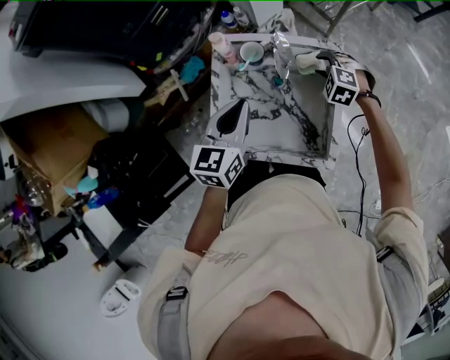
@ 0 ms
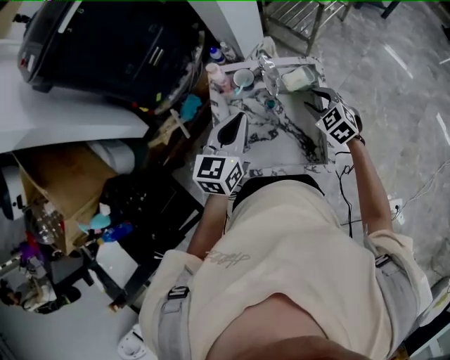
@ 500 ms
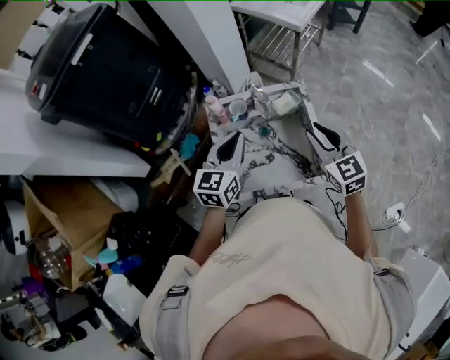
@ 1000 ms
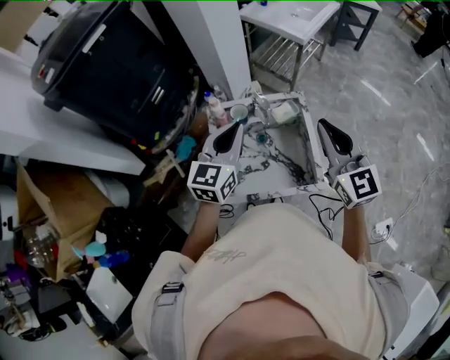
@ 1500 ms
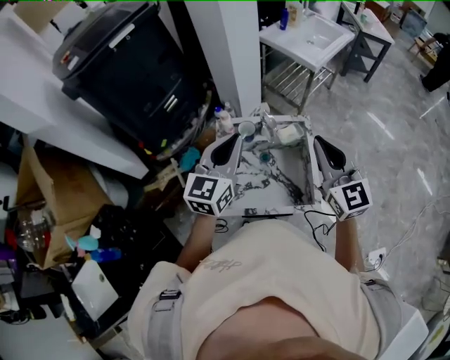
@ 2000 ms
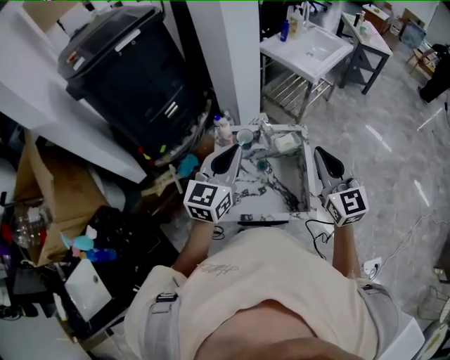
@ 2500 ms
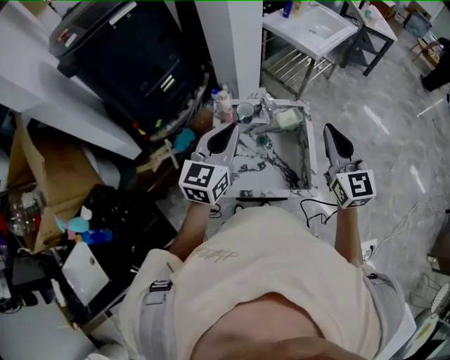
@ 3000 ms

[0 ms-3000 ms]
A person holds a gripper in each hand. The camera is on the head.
0 ms to 1500 ms: The right gripper travels upward and backward by some 40 cm, angles its fingers upward, by some 60 degrees, and closes its fingers, while the left gripper moves upward, some 10 cm, and changes its angle by roughly 20 degrees.
1500 ms to 3000 ms: The left gripper changes place by roughly 5 cm.

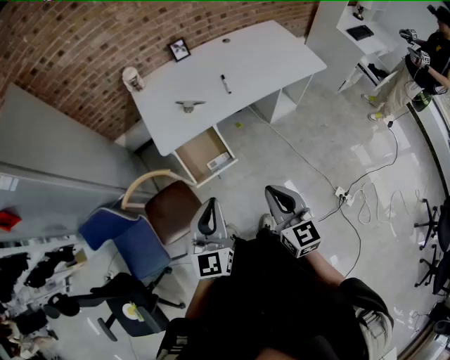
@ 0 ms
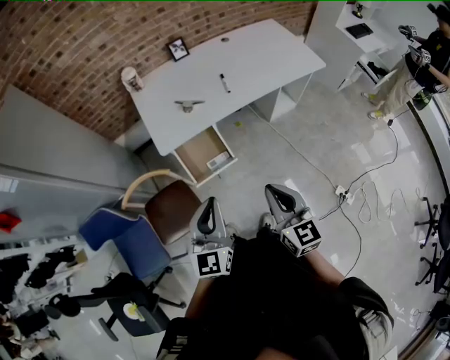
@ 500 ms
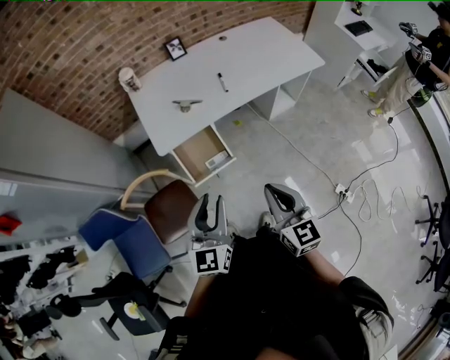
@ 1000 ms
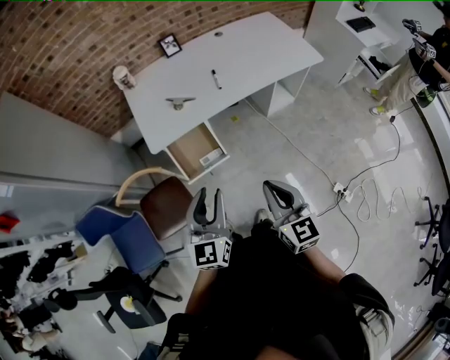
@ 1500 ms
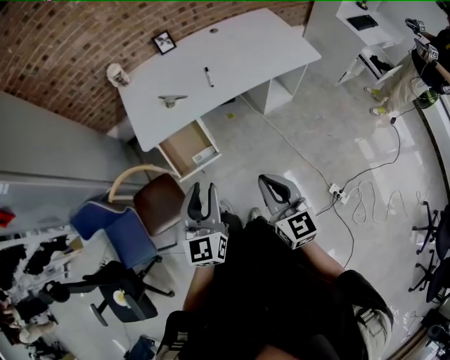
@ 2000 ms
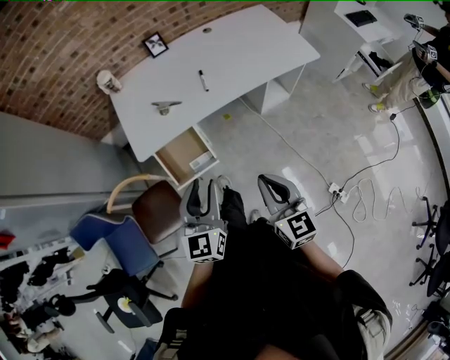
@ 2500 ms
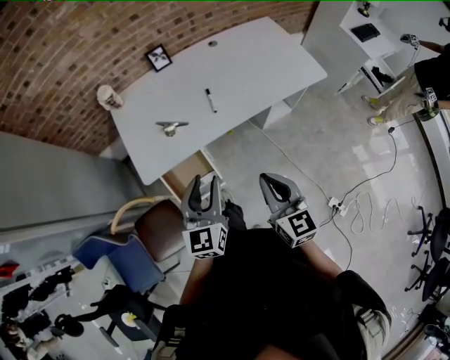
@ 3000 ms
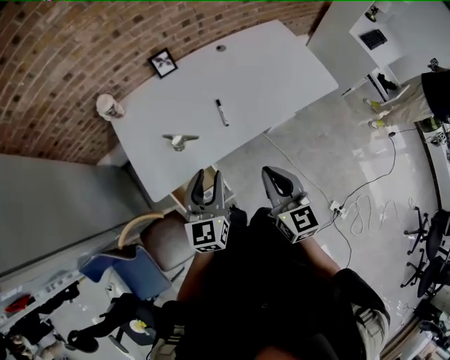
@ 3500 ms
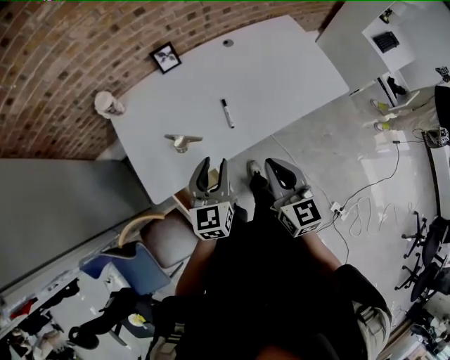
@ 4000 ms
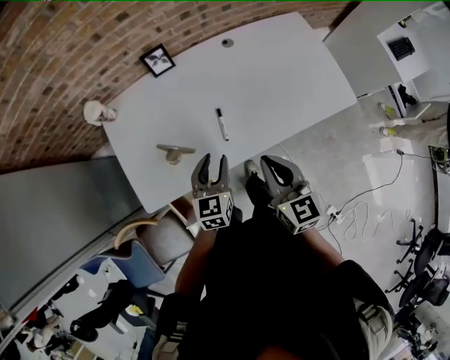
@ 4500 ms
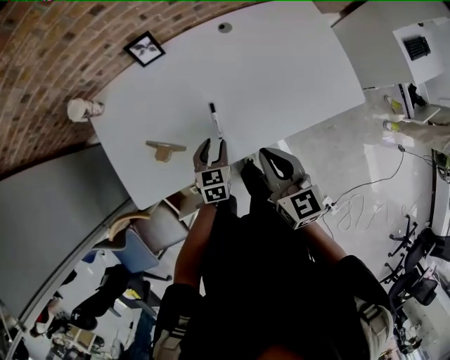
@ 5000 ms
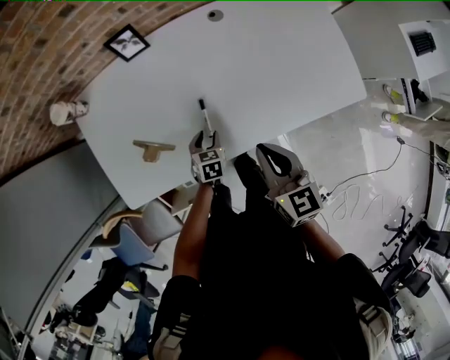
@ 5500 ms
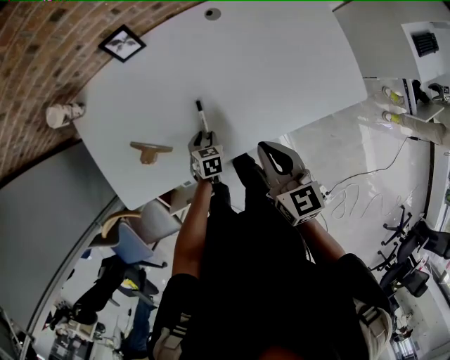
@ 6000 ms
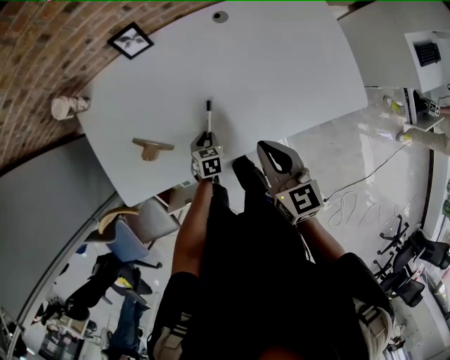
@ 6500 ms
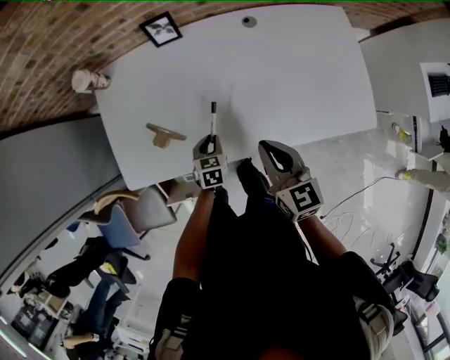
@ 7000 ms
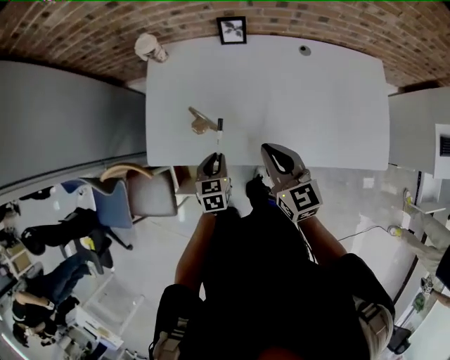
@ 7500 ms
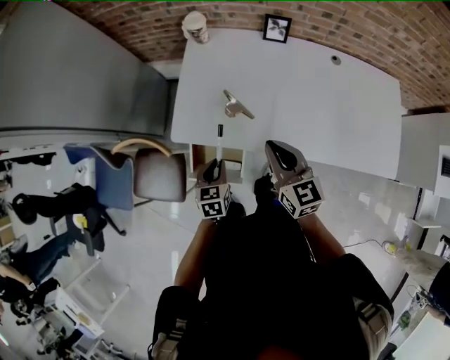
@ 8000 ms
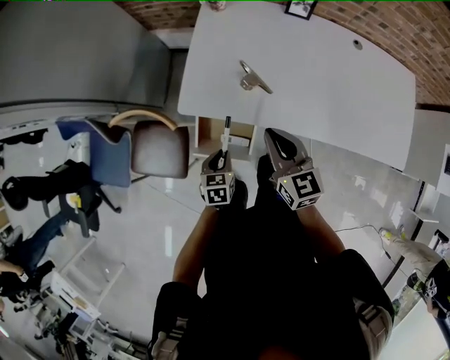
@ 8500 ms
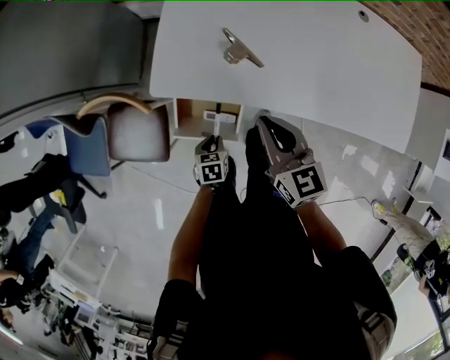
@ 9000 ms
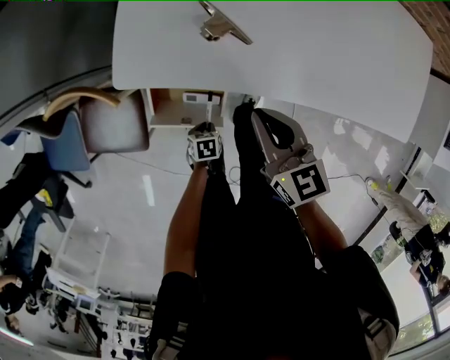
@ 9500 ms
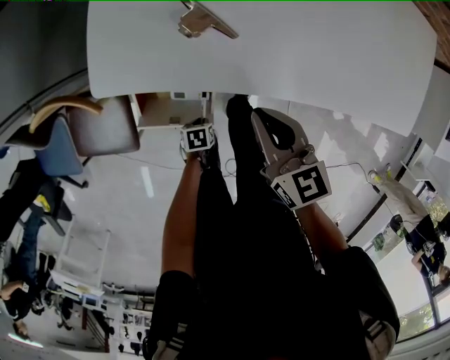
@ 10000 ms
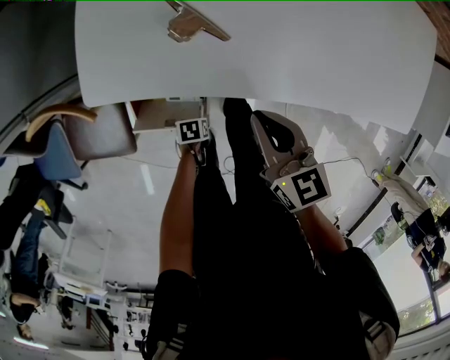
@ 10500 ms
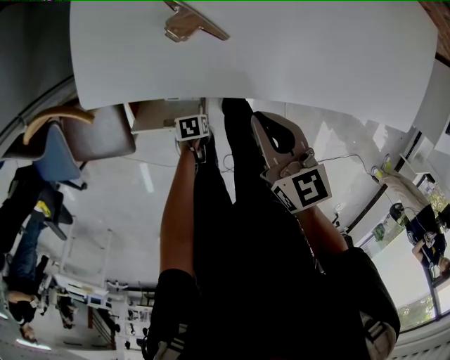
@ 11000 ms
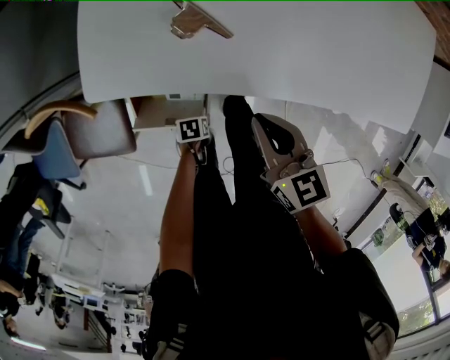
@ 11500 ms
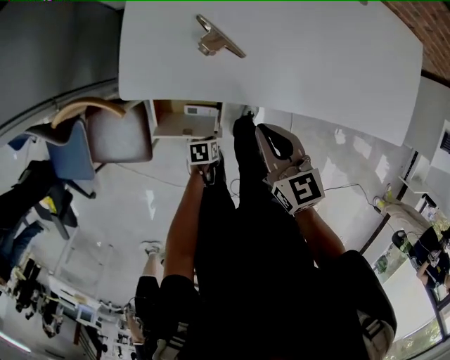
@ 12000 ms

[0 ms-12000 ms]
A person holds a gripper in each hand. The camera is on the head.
0 ms to 2000 ms: The grippers both shift to the right by about 10 cm. The left gripper opens up.
2000 ms to 4000 ms: The two grippers go roughly 35 cm forward.
4000 ms to 6000 ms: The right gripper shifts approximately 25 cm forward, to the right and downward, while the left gripper moves downward and forward, about 35 cm, and angles its fingers downward, by roughly 50 degrees.
6000 ms to 8000 ms: The left gripper shifts by roughly 35 cm, and changes its angle by approximately 40 degrees, while the right gripper moves roughly 25 cm, and swivels about 30 degrees.
8000 ms to 10000 ms: The right gripper travels downward by about 20 cm. Meanwhile the left gripper travels downward by about 35 cm, and angles its fingers downward, by approximately 40 degrees.
10000 ms to 12000 ms: The left gripper shifts roughly 5 cm upward.

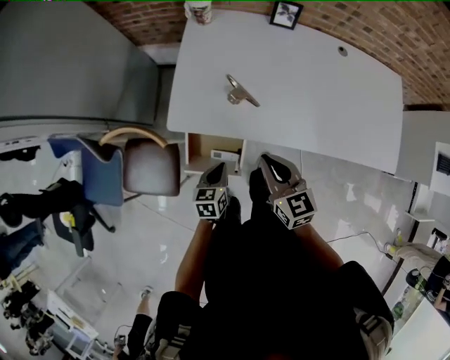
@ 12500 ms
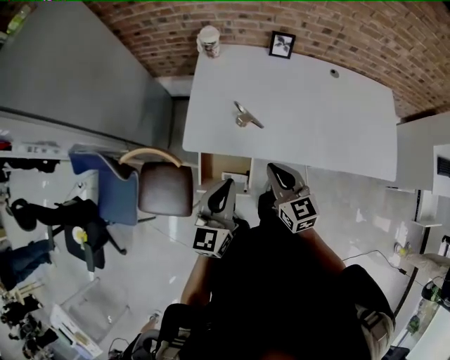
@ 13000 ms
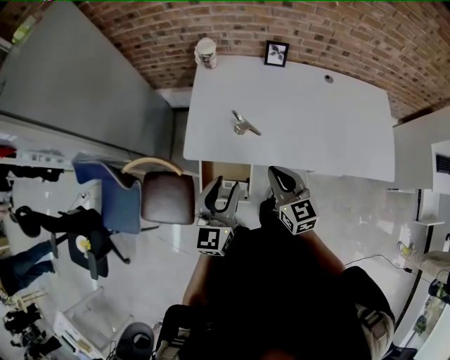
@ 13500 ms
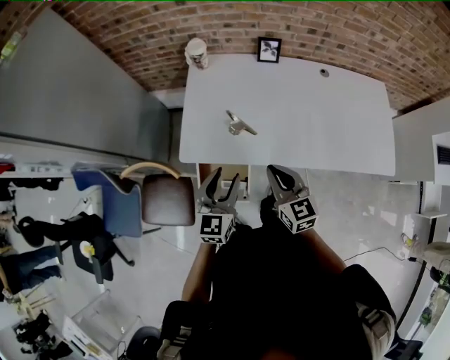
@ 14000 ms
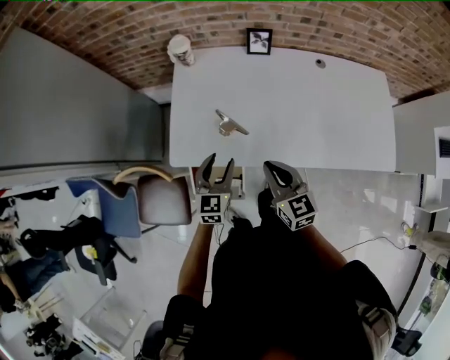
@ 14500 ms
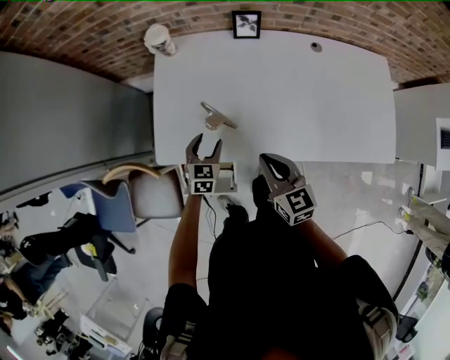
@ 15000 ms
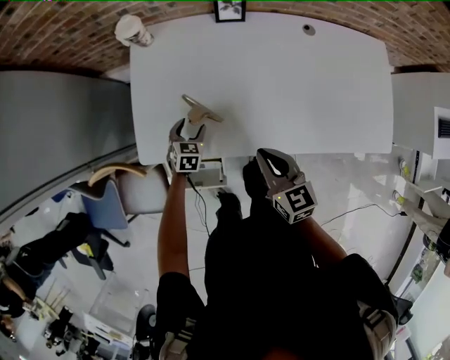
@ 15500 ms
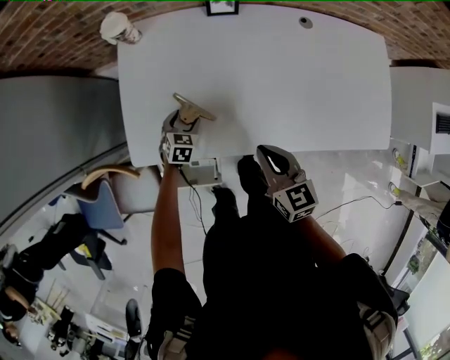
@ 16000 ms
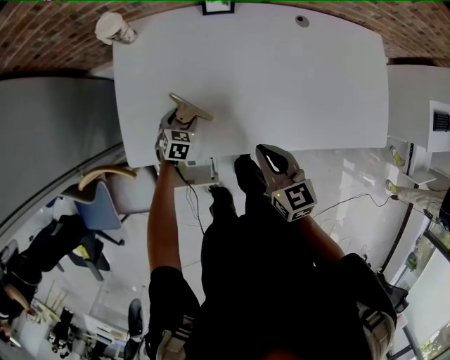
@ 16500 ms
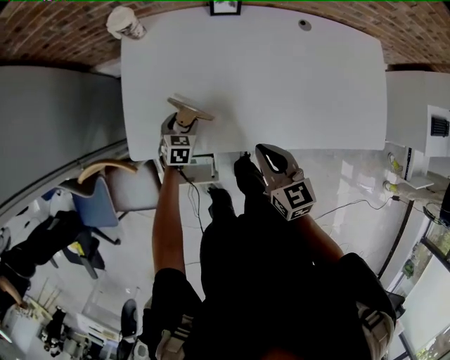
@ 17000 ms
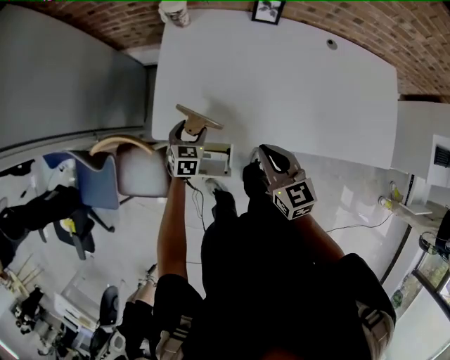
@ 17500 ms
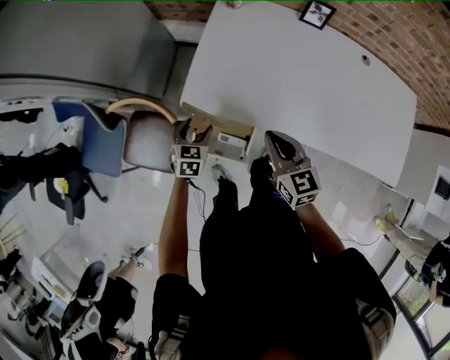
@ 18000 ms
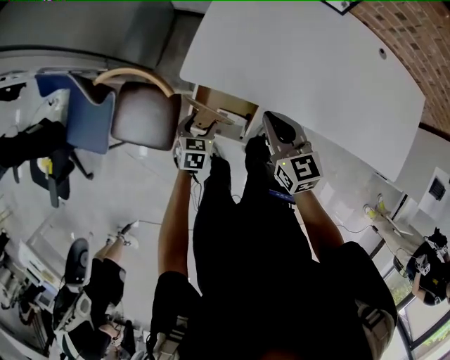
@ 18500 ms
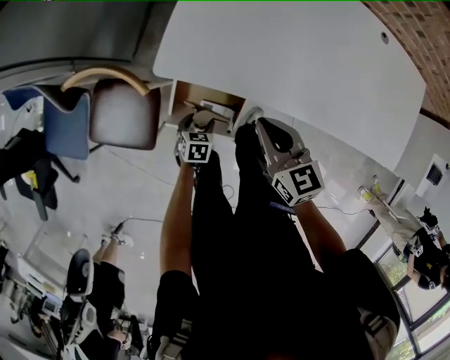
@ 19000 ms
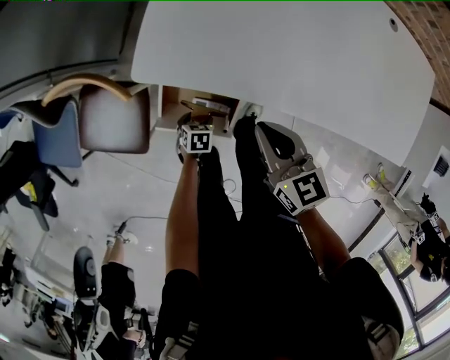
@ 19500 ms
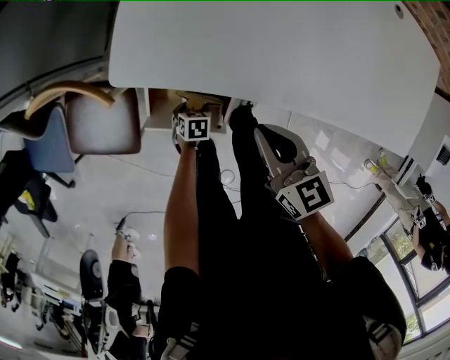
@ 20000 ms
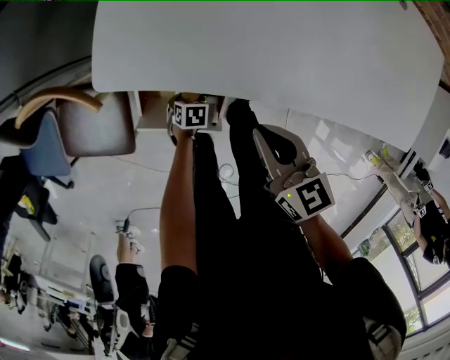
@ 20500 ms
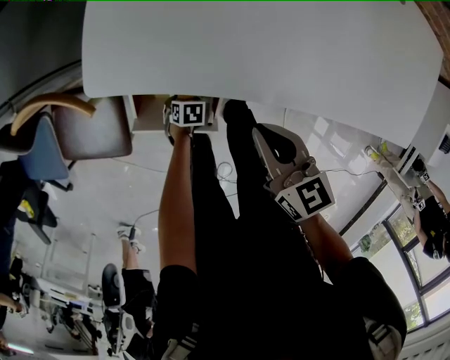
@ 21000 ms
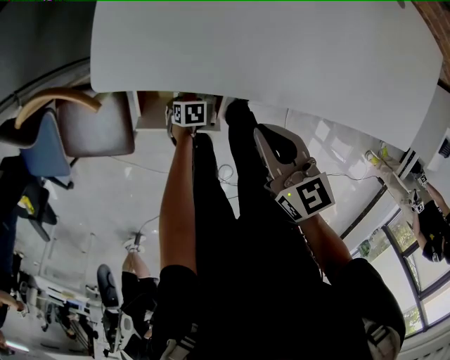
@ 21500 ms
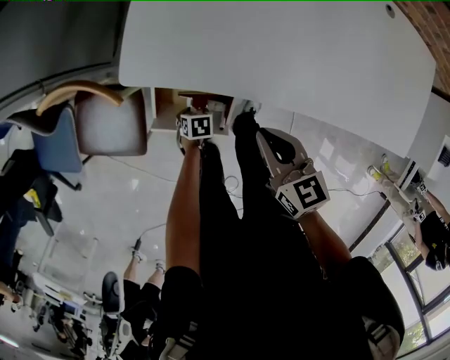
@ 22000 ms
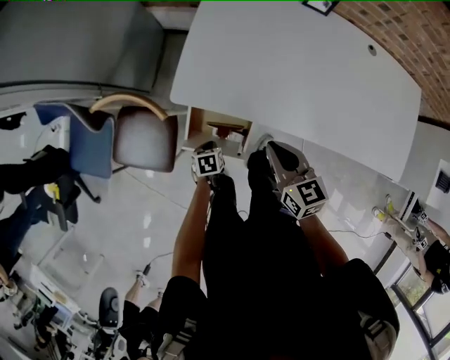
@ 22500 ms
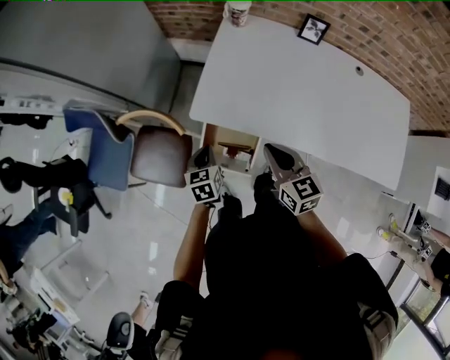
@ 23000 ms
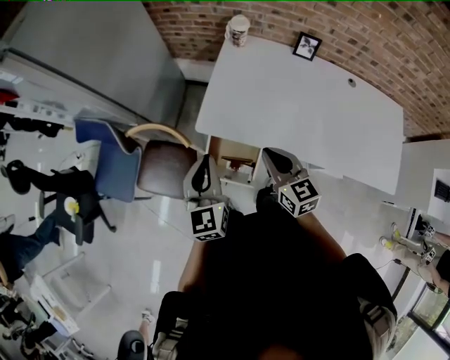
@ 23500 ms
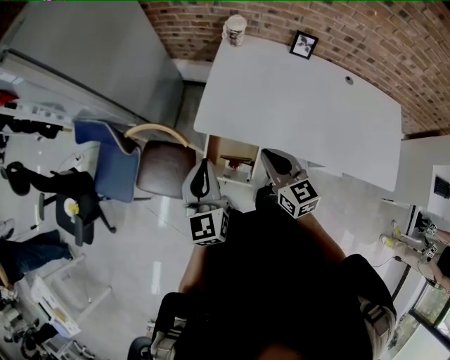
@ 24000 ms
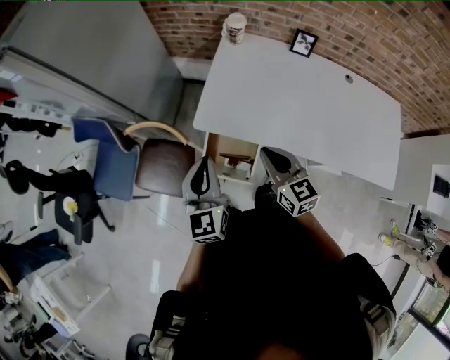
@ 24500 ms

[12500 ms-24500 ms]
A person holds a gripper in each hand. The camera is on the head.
12500 ms to 14500 ms: The left gripper moves upward and forward, about 20 cm, swivels roughly 30 degrees, and opens its fingers. The right gripper shifts by roughly 10 cm.
14500 ms to 16500 ms: The left gripper travels downward and forward by some 25 cm, and tips its fingers downward by approximately 30 degrees. The right gripper goes about 10 cm to the right and downward.
16500 ms to 18500 ms: The left gripper is displaced backward and to the left by roughly 30 cm, and rotates about 30 degrees. The right gripper moves to the left, some 20 cm, and swivels some 20 degrees.
18500 ms to 20500 ms: The left gripper heads downward, covering roughly 30 cm, and points its fingers approximately 30 degrees further downward; the right gripper moves downward, some 10 cm.
20500 ms to 22500 ms: The left gripper travels upward by some 15 cm, swivels roughly 20 degrees, and closes. Meanwhile the right gripper moves upward, approximately 10 cm.
22500 ms to 24500 ms: The left gripper is displaced upward by roughly 40 cm, and points its fingers roughly 60 degrees further upward. Meanwhile the right gripper shifts approximately 10 cm upward.
